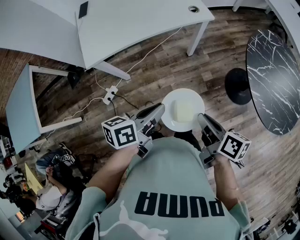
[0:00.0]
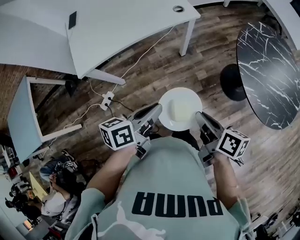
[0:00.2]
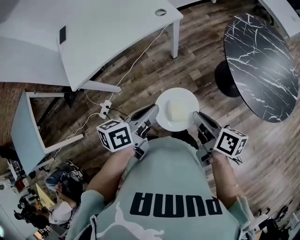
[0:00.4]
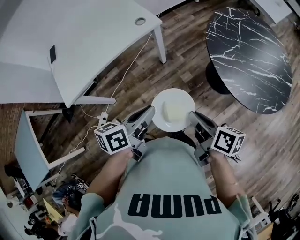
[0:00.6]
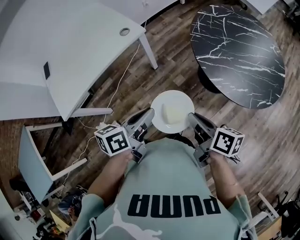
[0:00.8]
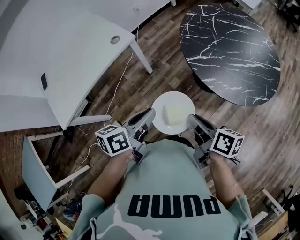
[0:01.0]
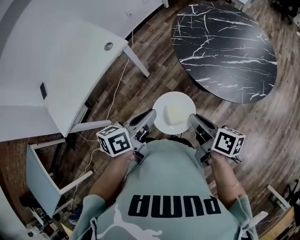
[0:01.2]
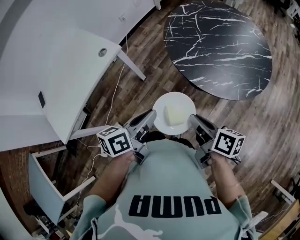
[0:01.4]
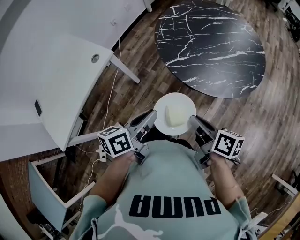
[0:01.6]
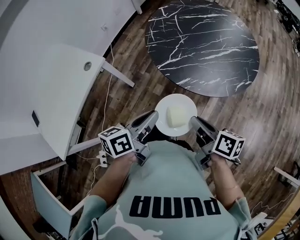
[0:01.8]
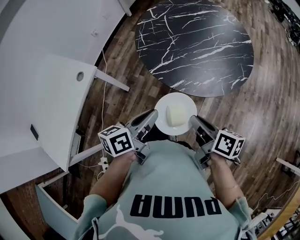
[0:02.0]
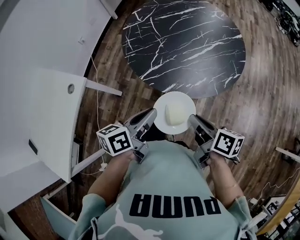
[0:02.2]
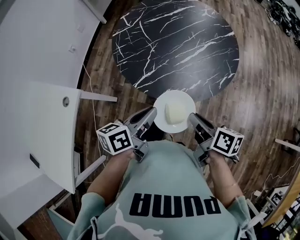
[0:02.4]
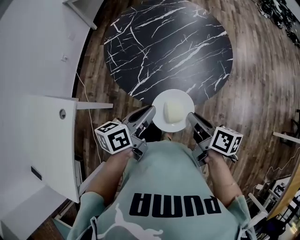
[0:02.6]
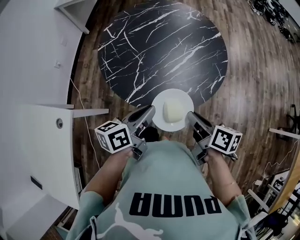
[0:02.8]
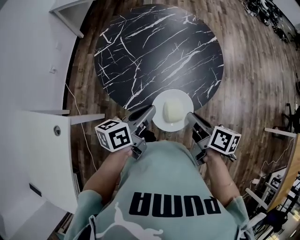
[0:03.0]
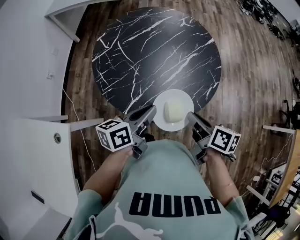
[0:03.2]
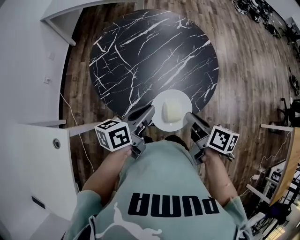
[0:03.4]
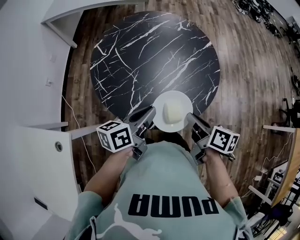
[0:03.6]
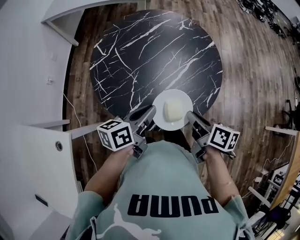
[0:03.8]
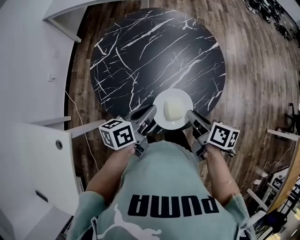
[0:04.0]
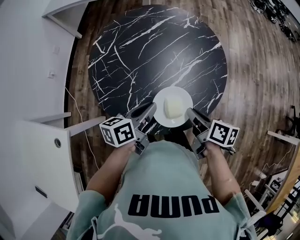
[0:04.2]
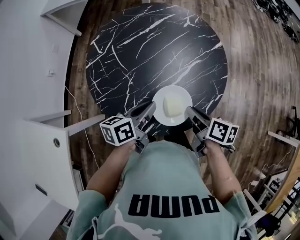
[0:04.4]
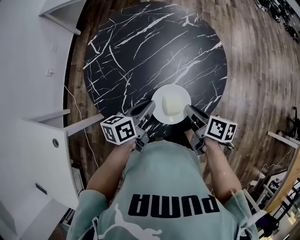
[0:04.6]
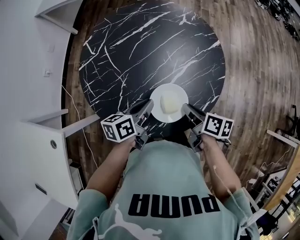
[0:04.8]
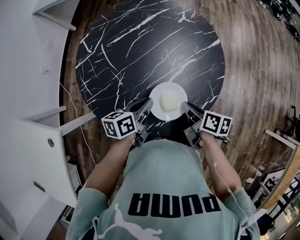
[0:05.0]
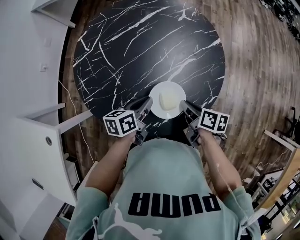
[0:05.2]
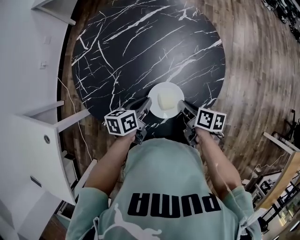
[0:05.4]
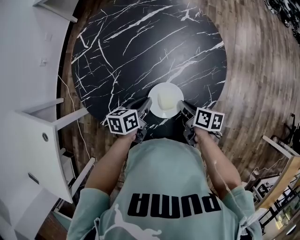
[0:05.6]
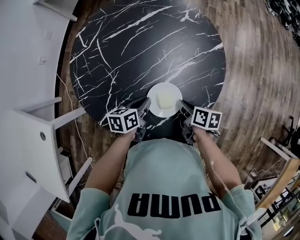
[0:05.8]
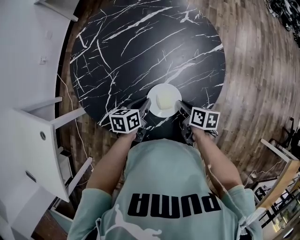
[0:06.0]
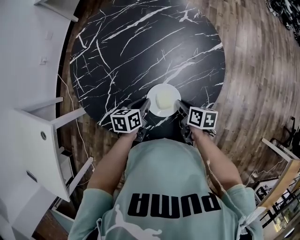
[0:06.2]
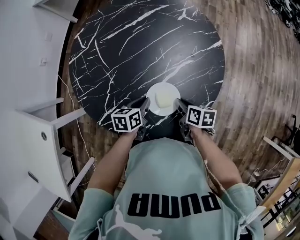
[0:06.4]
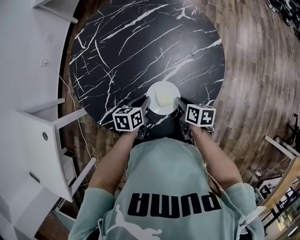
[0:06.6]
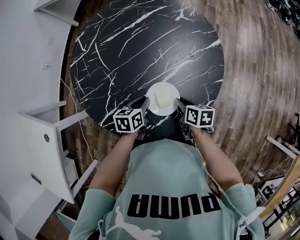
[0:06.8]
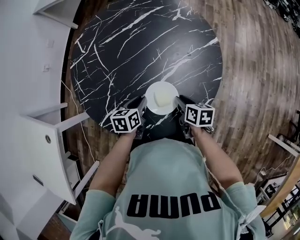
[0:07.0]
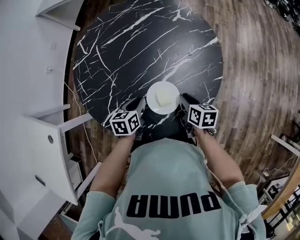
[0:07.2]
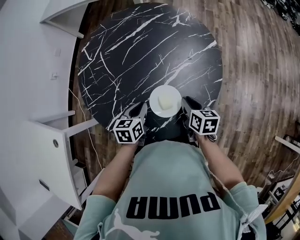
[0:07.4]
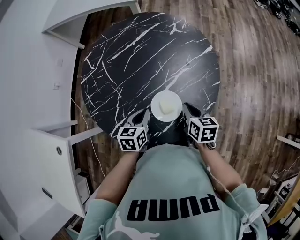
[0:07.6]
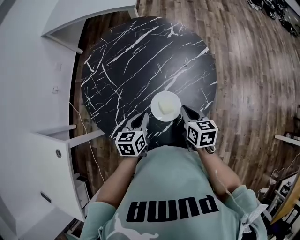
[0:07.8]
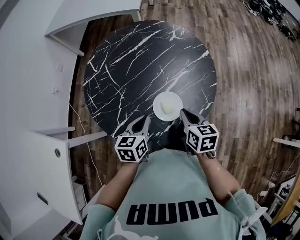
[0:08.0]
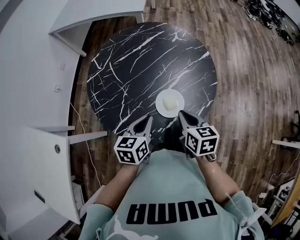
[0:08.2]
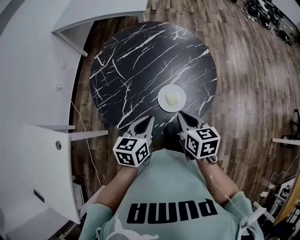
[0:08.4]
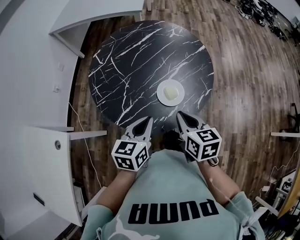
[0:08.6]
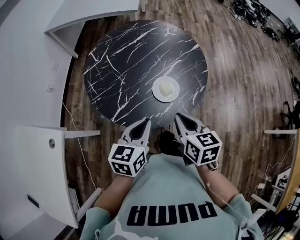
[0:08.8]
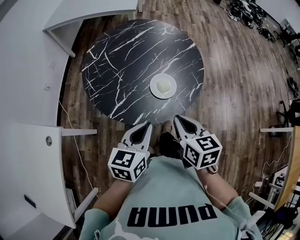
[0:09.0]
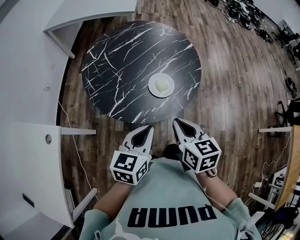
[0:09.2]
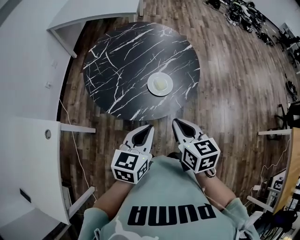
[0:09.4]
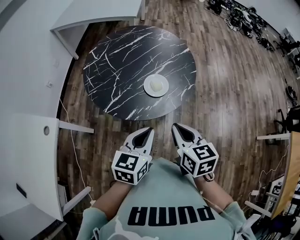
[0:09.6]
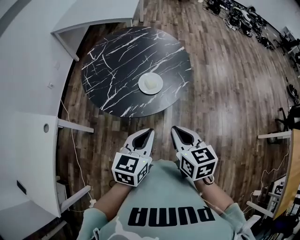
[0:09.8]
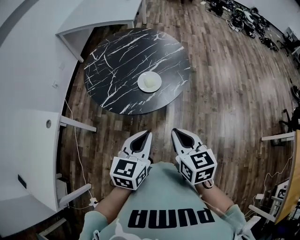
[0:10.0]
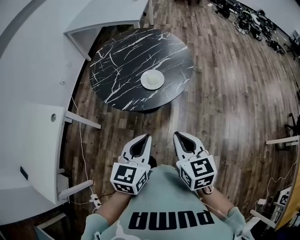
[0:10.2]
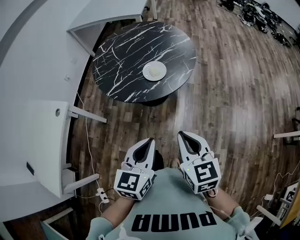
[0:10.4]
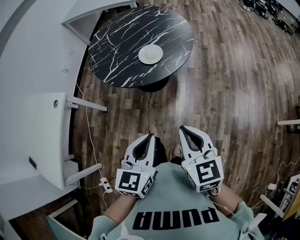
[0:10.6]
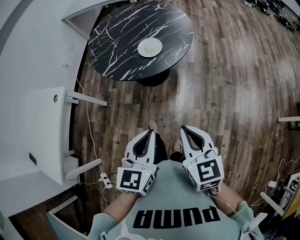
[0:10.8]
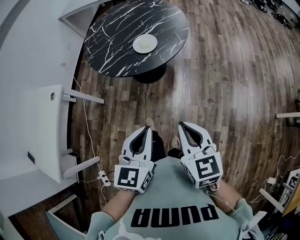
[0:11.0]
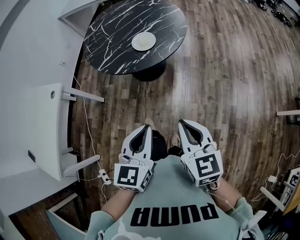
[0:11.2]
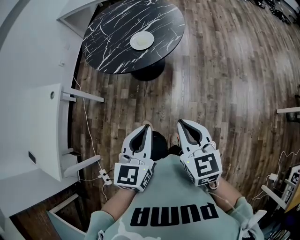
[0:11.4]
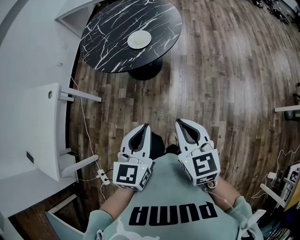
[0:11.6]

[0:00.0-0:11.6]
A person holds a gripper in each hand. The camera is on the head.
0:00.0 to 0:01.4: The left gripper travels to the right and forward by roughly 30 cm, and rotates some 30 degrees. Meanwhile the right gripper shifts some 25 cm to the right, and rotates roughly 30 degrees.
0:01.4 to 0:02.8: The left gripper changes place by some 25 cm, and swivels roughly 30 degrees, while the right gripper shifts by about 20 cm, and swivels some 30 degrees.
0:02.8 to 0:04.4: The two grippers go some 15 cm forward.
0:04.4 to 0:05.8: The two grippers go roughly 15 cm downward.
0:05.8 to 0:07.2: The grippers make only small movements.
0:07.2 to 0:08.8: The right gripper heads upward, backward and to the left, covering about 30 cm, and swivels approximately 20 degrees. Meanwhile the left gripper goes approximately 30 cm upward and backward, and rotates about 30 degrees.
0:08.8 to 0:10.2: The grippers both shift backward and to the right by approximately 25 cm.
0:10.2 to 0:11.6: The grippers both shift backward by roughly 15 cm.

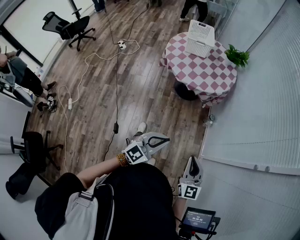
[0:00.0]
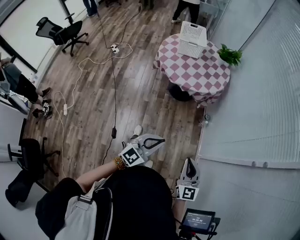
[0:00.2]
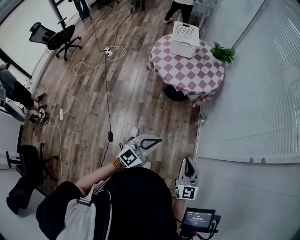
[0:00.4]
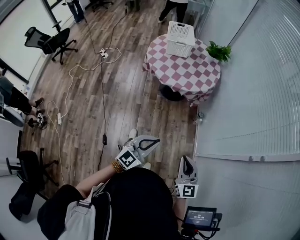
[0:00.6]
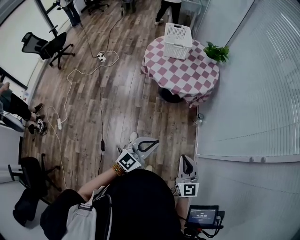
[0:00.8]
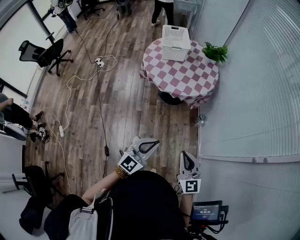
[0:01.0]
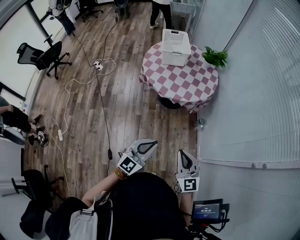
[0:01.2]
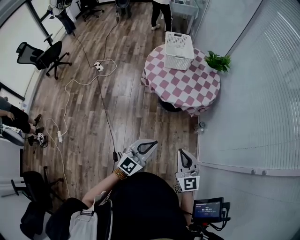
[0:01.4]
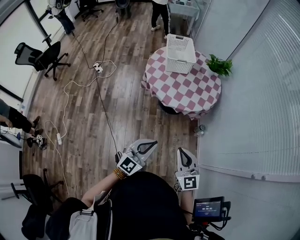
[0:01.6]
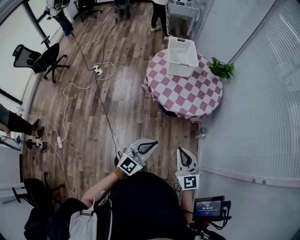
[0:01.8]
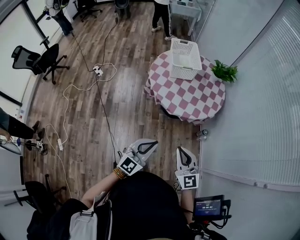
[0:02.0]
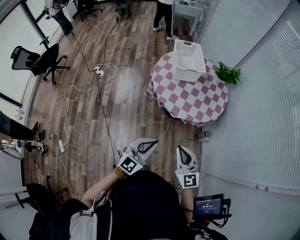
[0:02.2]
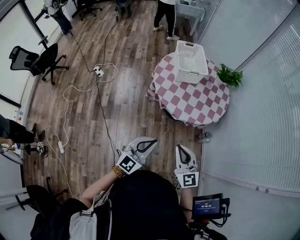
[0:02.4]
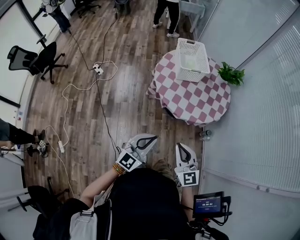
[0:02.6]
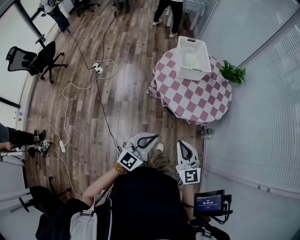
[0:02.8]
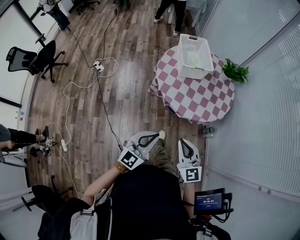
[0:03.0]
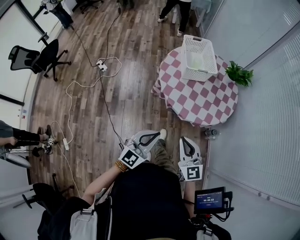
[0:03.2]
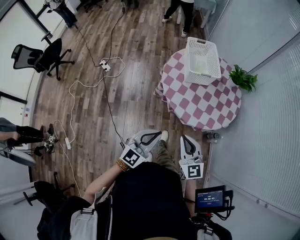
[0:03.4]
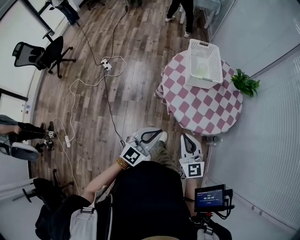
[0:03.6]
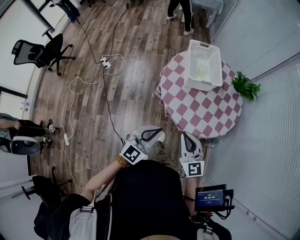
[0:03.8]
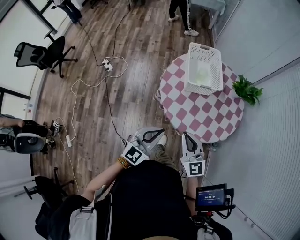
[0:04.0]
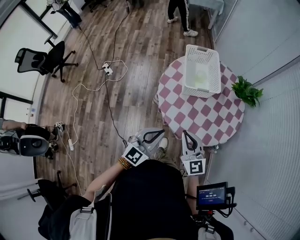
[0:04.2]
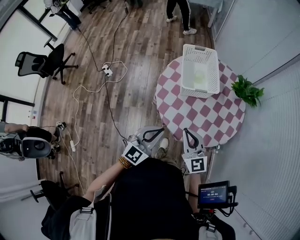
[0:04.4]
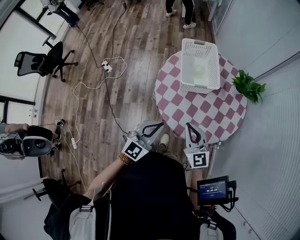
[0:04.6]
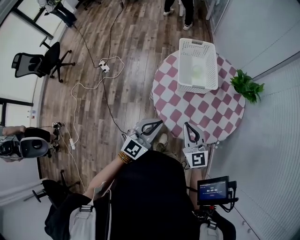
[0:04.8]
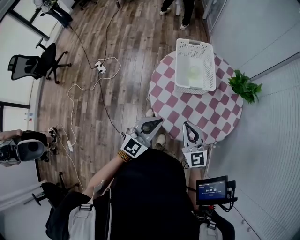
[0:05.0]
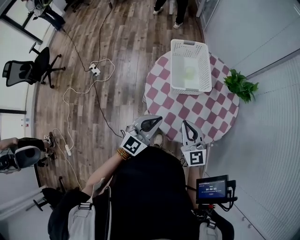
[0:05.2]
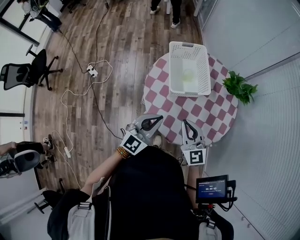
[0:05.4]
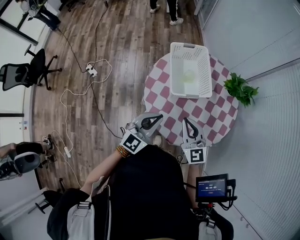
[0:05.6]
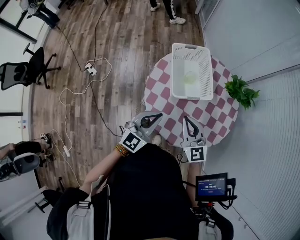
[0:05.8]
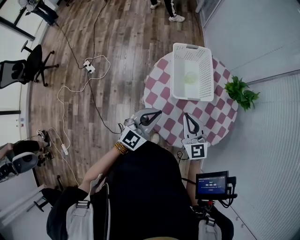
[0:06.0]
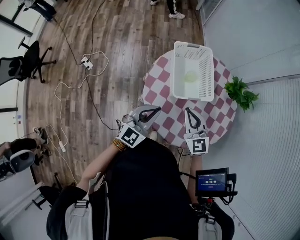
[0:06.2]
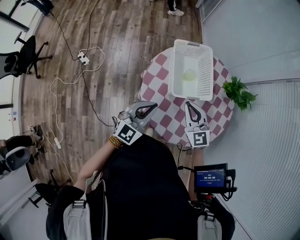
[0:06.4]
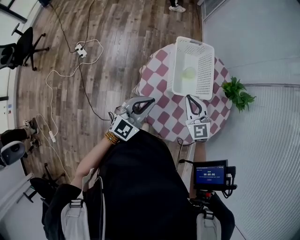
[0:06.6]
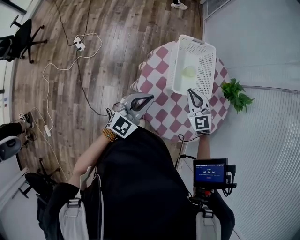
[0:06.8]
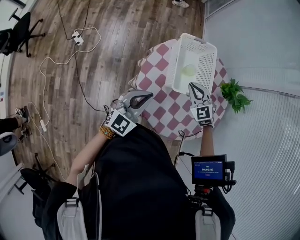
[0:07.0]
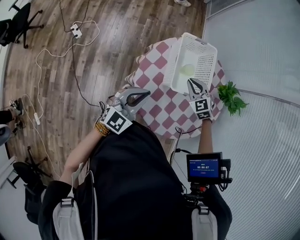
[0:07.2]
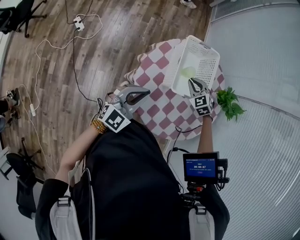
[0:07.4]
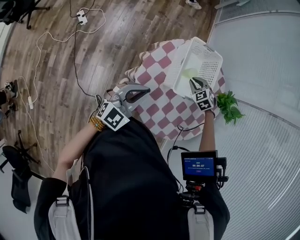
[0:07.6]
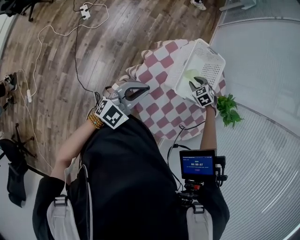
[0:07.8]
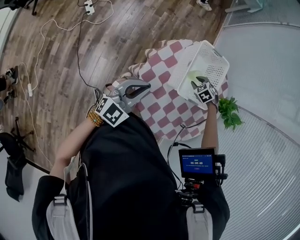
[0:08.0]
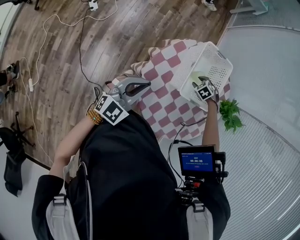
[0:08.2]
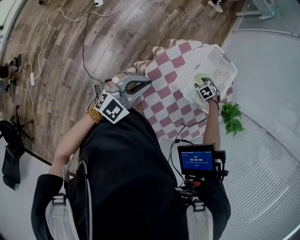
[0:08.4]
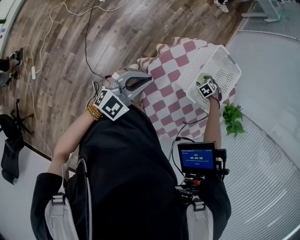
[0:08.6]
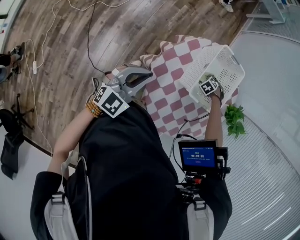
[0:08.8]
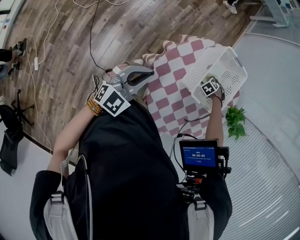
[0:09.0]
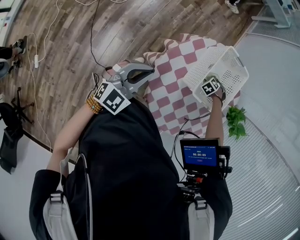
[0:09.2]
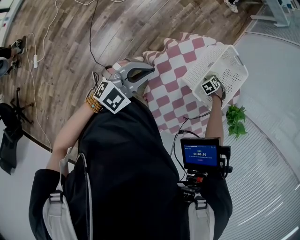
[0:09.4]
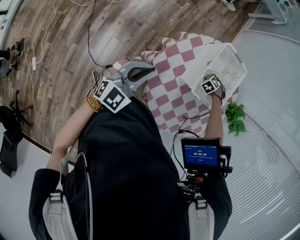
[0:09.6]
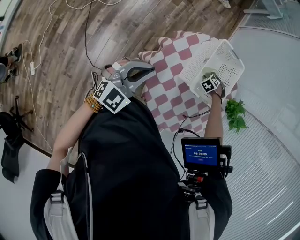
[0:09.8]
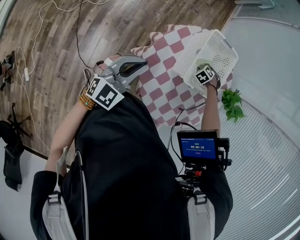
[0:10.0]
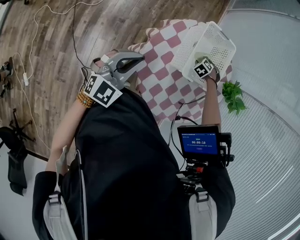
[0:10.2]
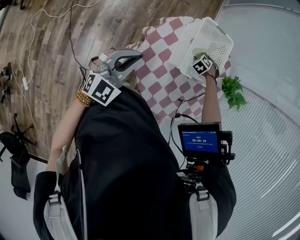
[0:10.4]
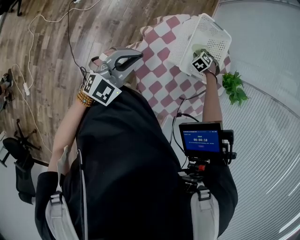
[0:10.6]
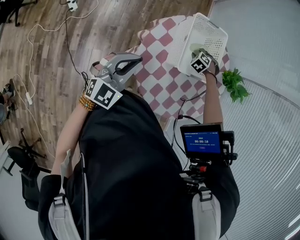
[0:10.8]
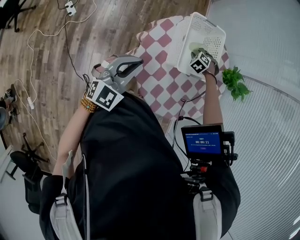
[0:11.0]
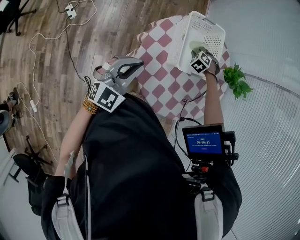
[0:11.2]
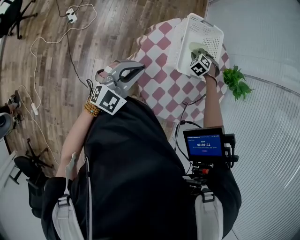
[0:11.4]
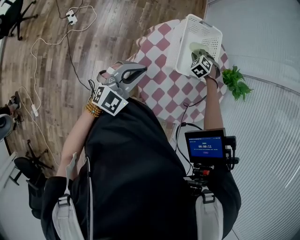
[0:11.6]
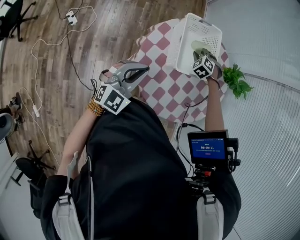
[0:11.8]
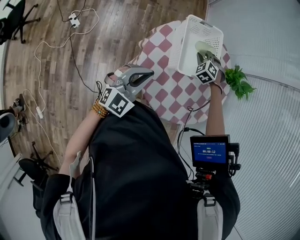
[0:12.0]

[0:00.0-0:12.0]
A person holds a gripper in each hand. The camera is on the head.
0:00.0 to 0:01.6: Both grippers move to the left and forward, some 20 cm.
0:01.6 to 0:03.0: Both grippers move to the left and forward, approximately 25 cm.
0:03.0 to 0:04.4: The grippers both shift forward by roughly 25 cm.
0:04.4 to 0:06.0: Both grippers travel together forward, about 20 cm.
0:06.0 to 0:07.6: The left gripper goes about 10 cm to the left. Meanwhile the right gripper is displaced forward and downward by some 25 cm, and angles its fingers downward, by roughly 50 degrees.
0:07.6 to 0:09.0: The right gripper goes about 20 cm downward, changes its angle by approximately 40 degrees, and opens its fingers; the left gripper moves approximately 10 cm.
0:09.0 to 0:10.4: The right gripper moves approximately 5 cm, and closes its fingers.
0:10.4 to 0:12.0: The right gripper heads upward, covering some 15 cm, and rotates about 30 degrees. Meanwhile the left gripper ends up about 10 cm from where it was.
